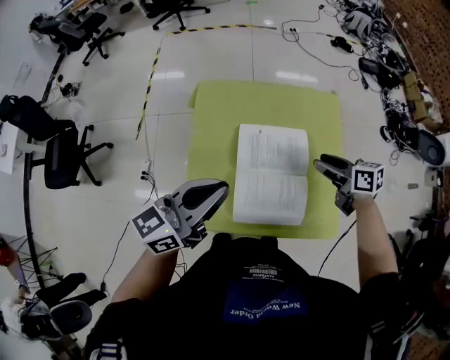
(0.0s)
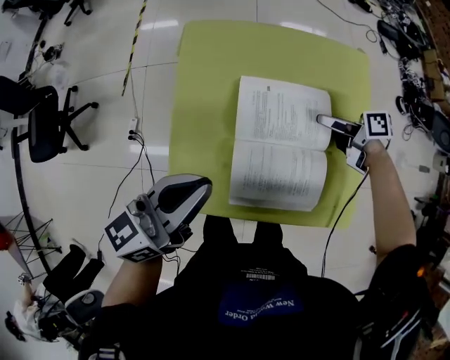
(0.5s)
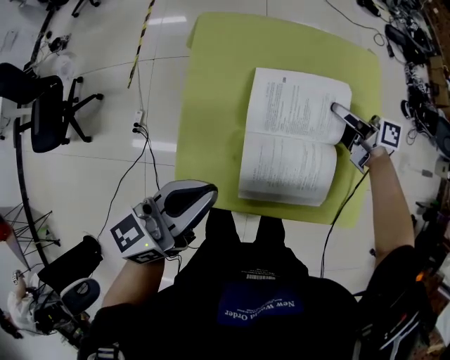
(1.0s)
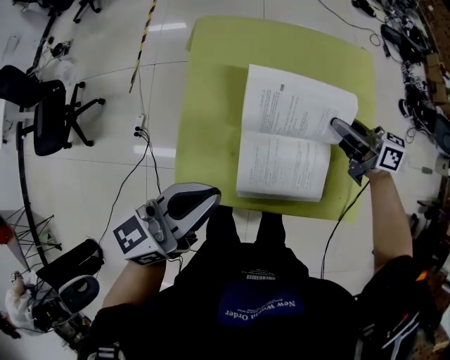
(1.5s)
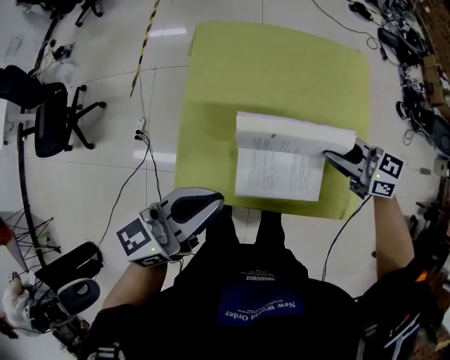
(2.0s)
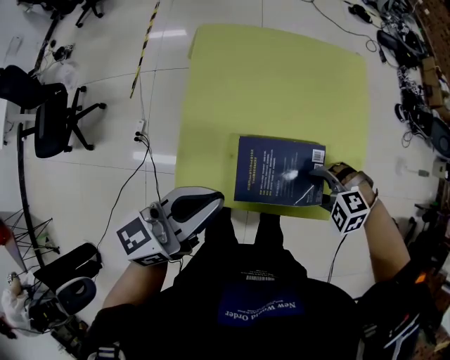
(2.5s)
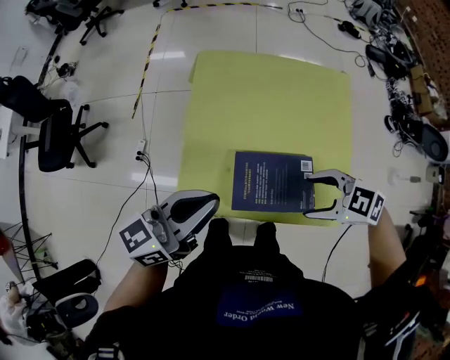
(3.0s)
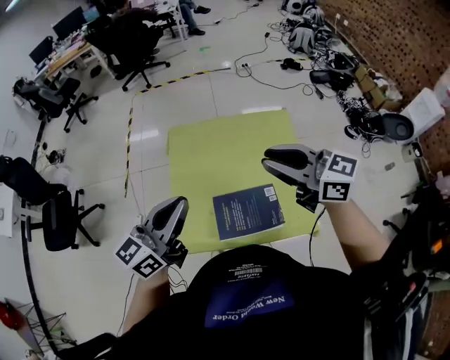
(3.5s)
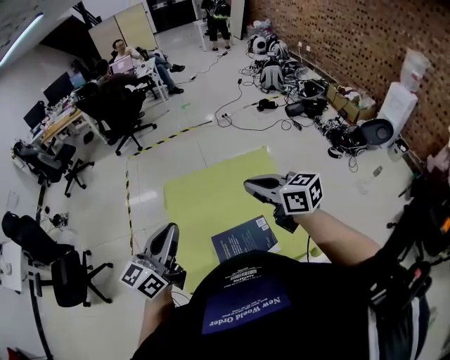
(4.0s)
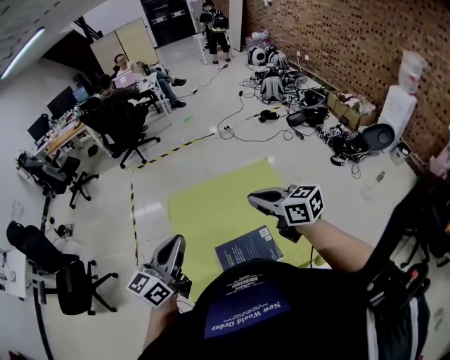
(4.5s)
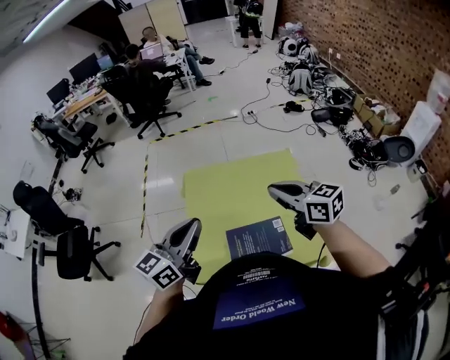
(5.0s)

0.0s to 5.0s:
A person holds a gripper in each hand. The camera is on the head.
0.0s to 2.5s: The left gripper shifts about 5 cm downward. The right gripper moves up and down over about 15 cm, changing direction 2 times, twists about 80 degrees counterclockwise, seen from behind, and closes and opens again.
2.5s to 5.0s: The left gripper heads upward, covering some 15 cm. Meanwhile the right gripper shifts approximately 35 cm upward, tilts its fingers about 60 degrees upward, and closes its fingers.

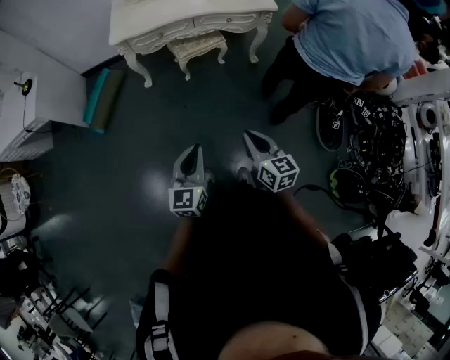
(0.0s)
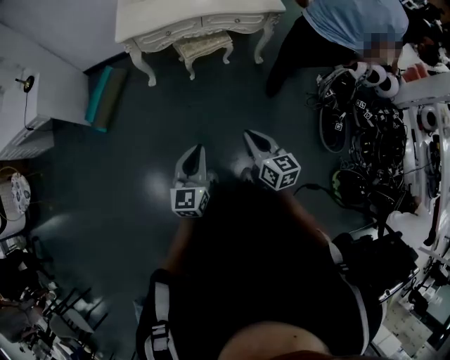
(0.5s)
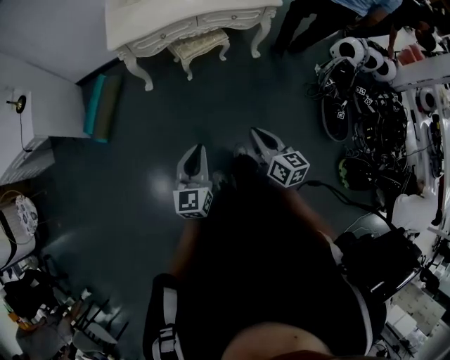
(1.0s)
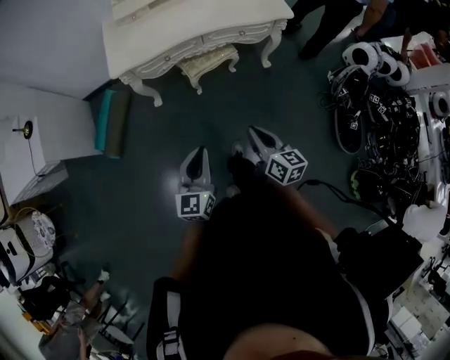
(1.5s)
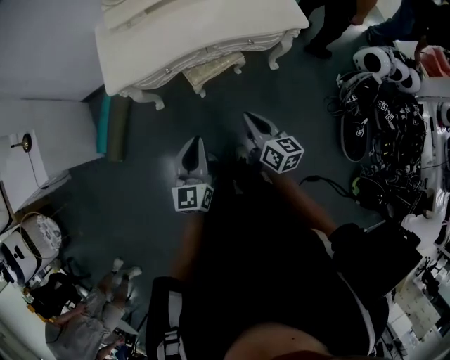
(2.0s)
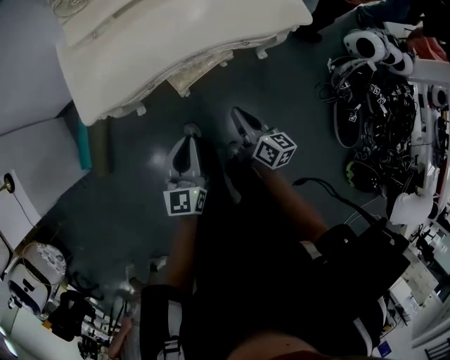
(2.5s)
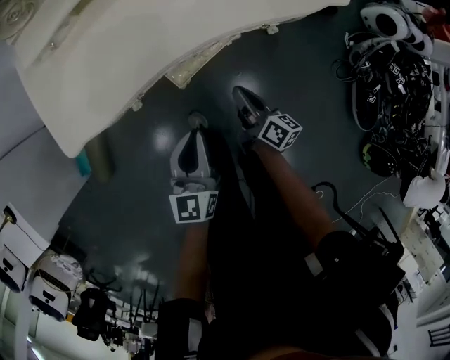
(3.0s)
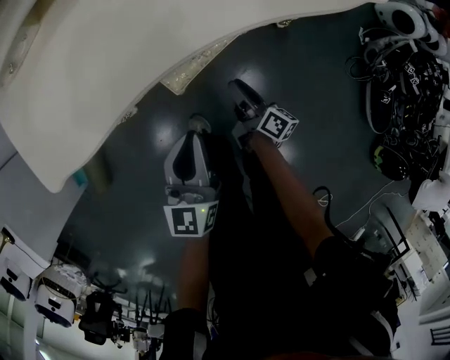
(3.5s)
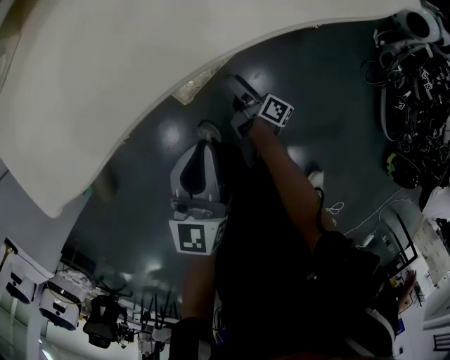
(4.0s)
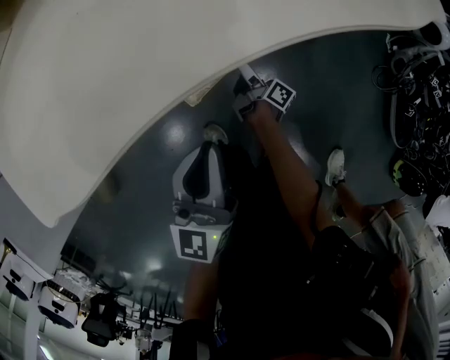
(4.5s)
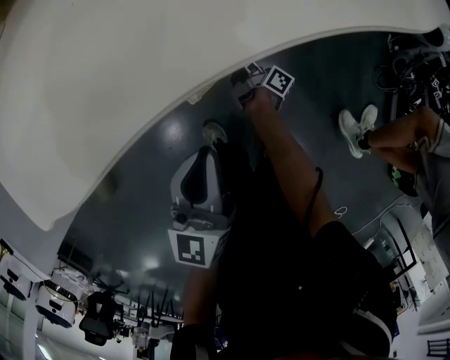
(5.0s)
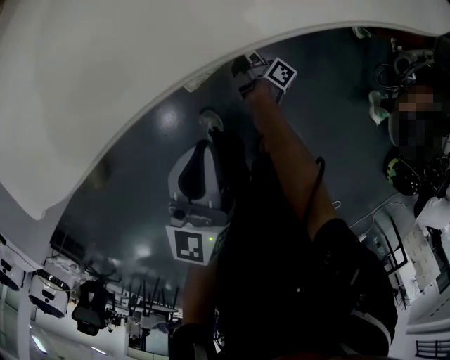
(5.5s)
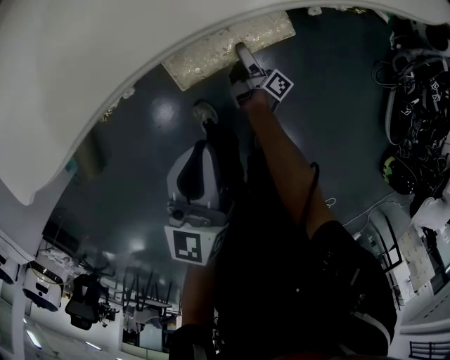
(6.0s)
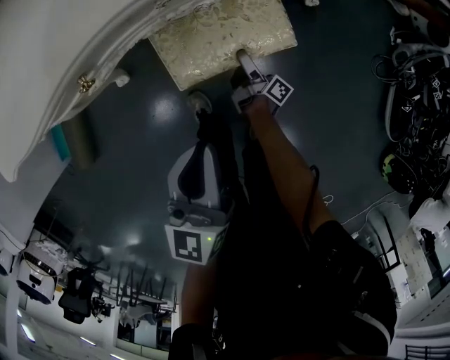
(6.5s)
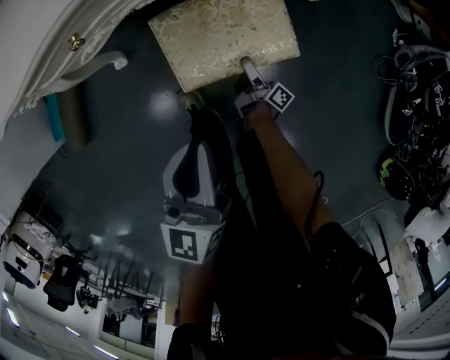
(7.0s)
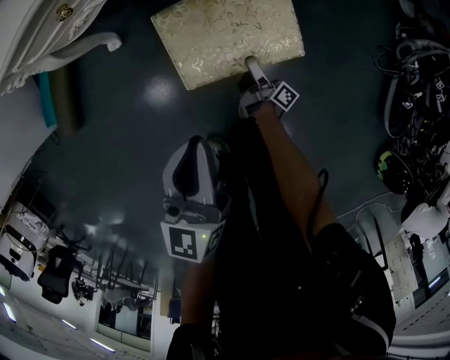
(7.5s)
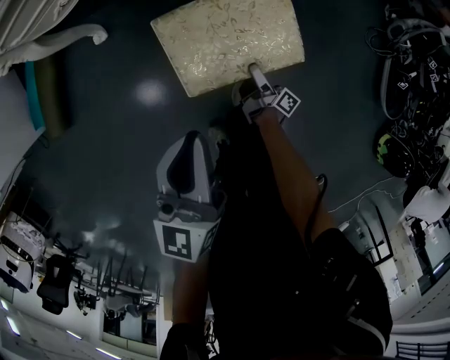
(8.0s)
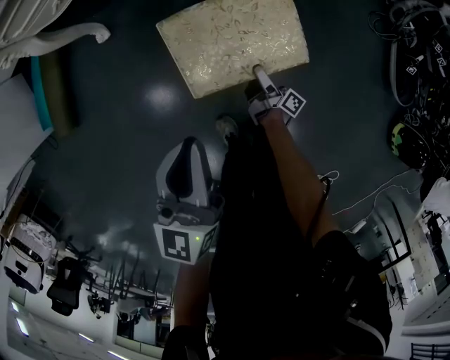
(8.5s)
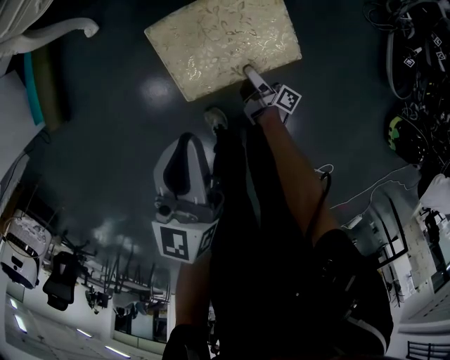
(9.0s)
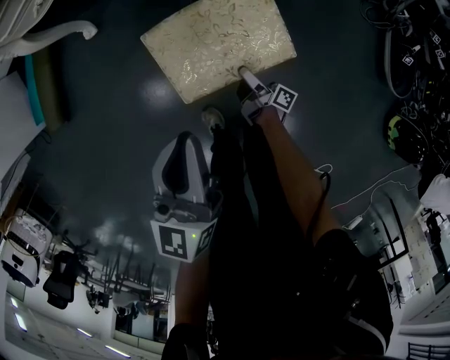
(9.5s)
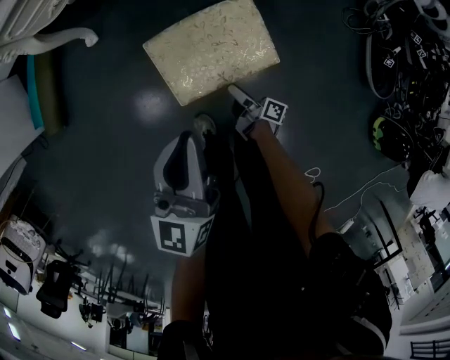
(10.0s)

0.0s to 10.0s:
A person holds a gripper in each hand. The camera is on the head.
0.0s to 2.0s: Both grippers move forward, about 40 cm.
2.0s to 4.0s: The grippers both shift downward and forward by about 50 cm. The right gripper rotates around the line of its fingers by approximately 40 degrees, clockwise from behind, and opens its fingers.
4.0s to 6.0s: The right gripper travels downward by roughly 10 cm.
6.0s to 8.0s: The two grippers go roughly 30 cm backward.
8.0s to 10.0s: The left gripper moves backward, to the right and upward, roughly 15 cm. The right gripper travels backward by some 15 cm.

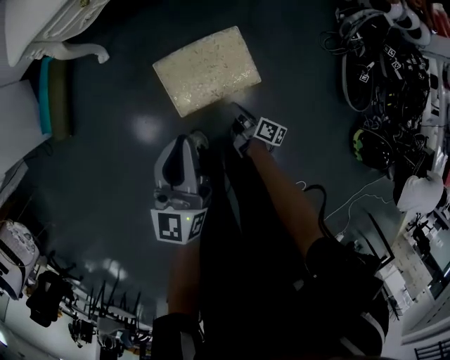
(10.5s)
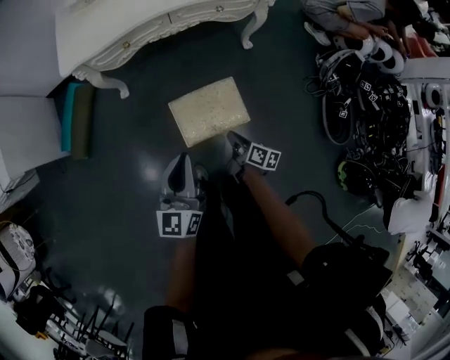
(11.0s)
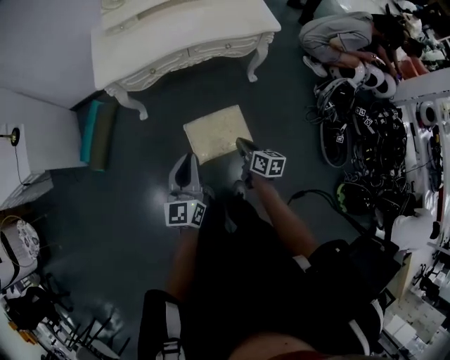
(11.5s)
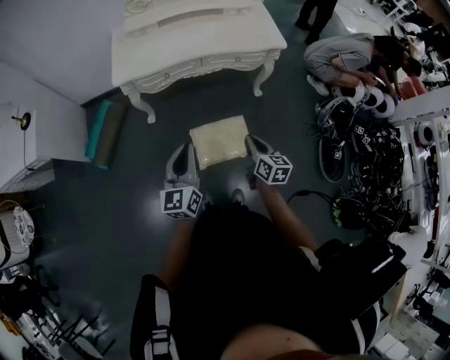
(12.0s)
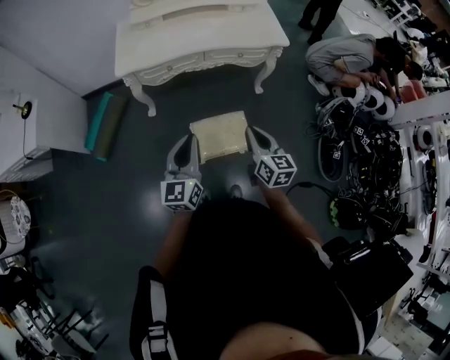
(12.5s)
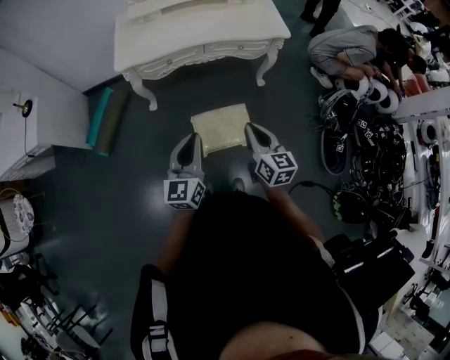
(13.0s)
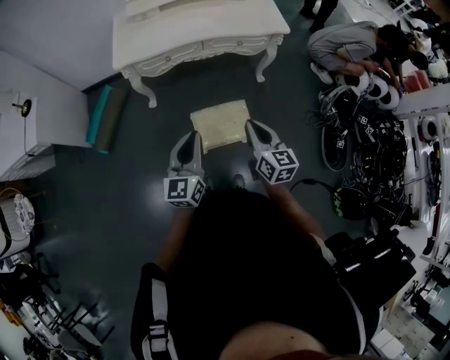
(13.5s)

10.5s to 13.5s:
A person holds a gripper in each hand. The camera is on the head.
10.5s to 12.0s: The left gripper goes roughly 20 cm upward. The right gripper shifts roughly 40 cm upward, and twists about 50 degrees counterclockwise, seen from behind.
12.0s to 13.5s: The right gripper goes approximately 10 cm upward.

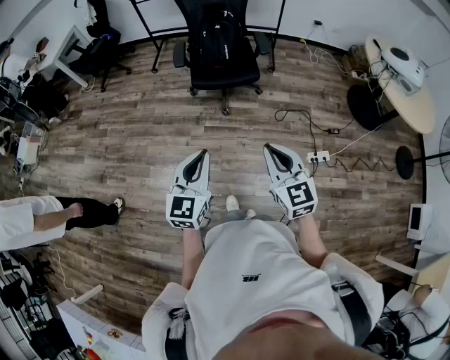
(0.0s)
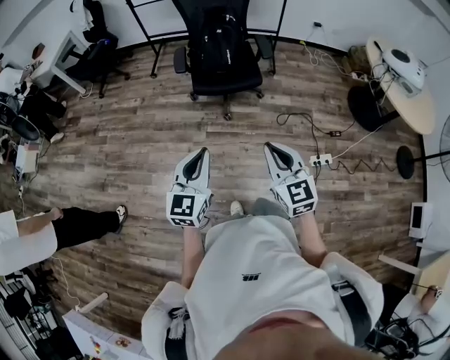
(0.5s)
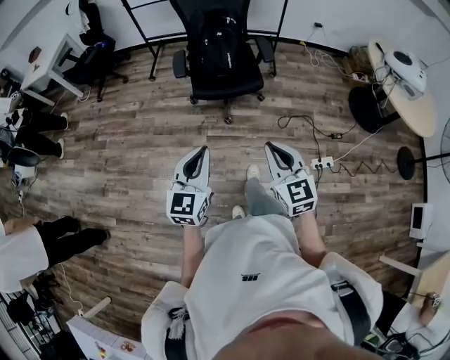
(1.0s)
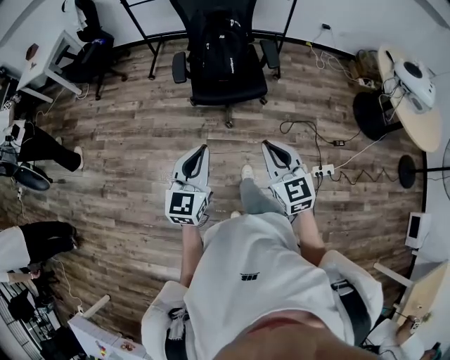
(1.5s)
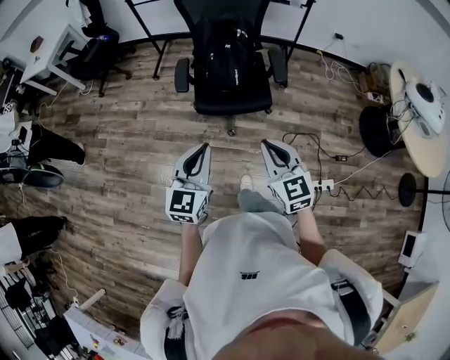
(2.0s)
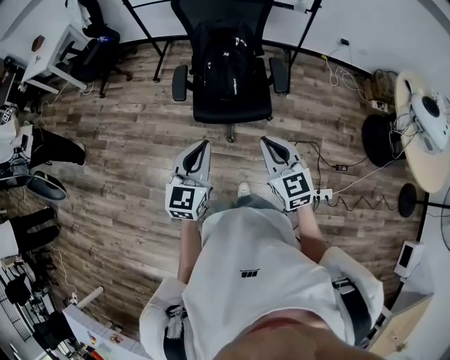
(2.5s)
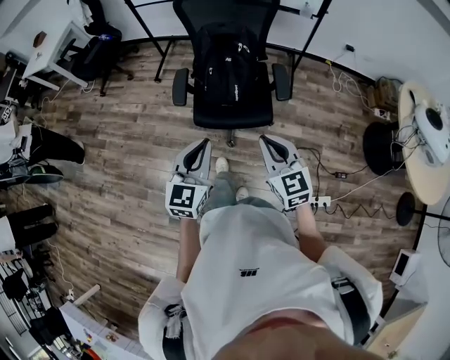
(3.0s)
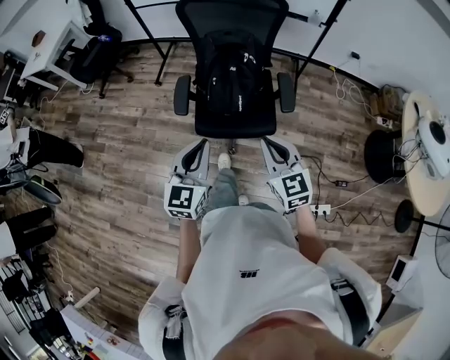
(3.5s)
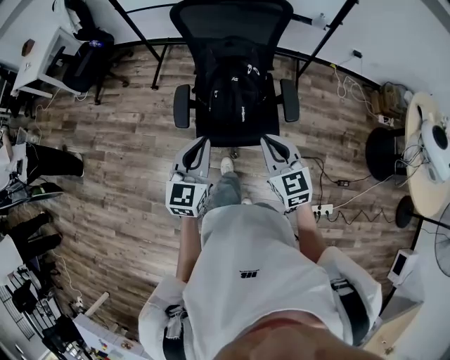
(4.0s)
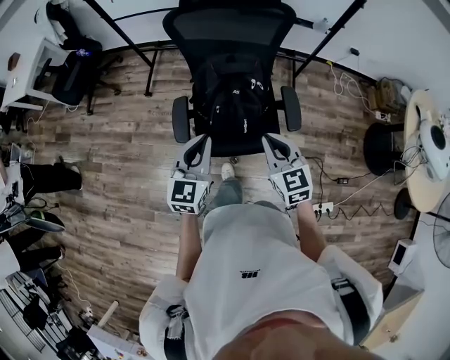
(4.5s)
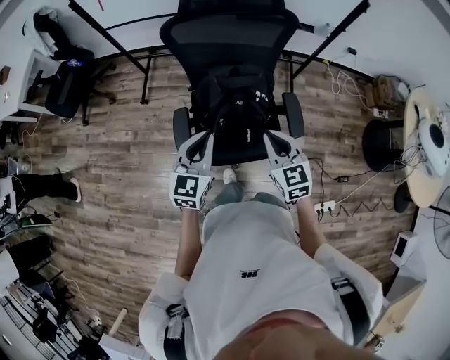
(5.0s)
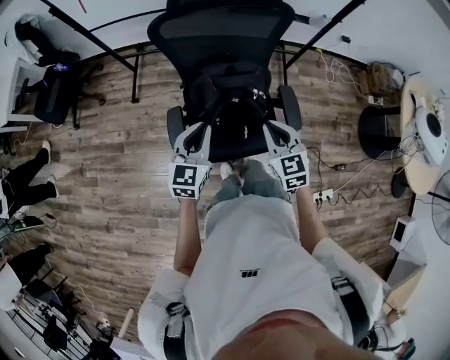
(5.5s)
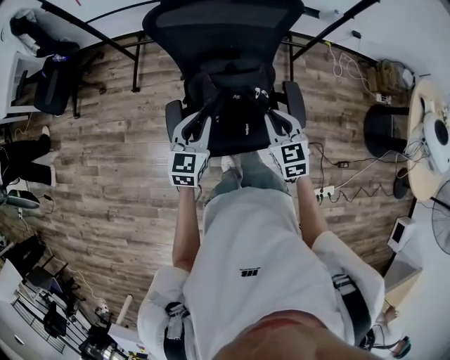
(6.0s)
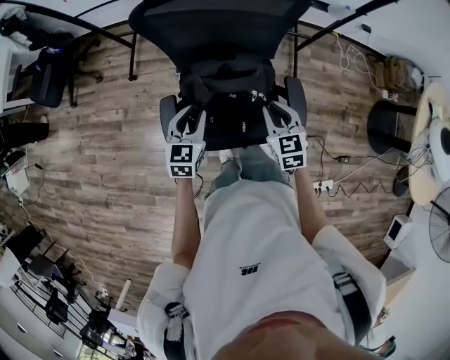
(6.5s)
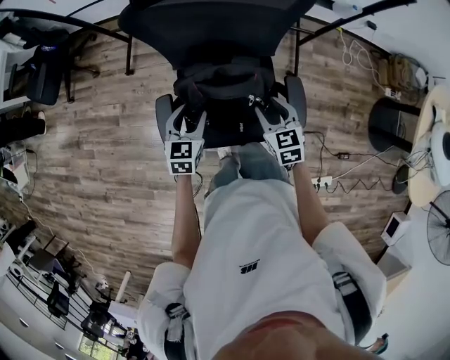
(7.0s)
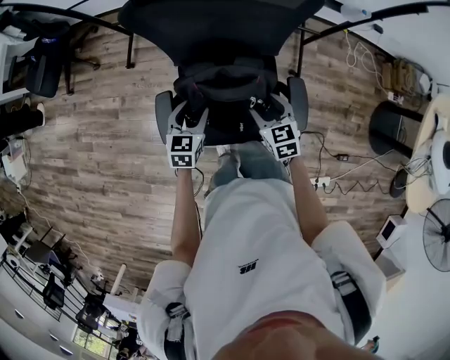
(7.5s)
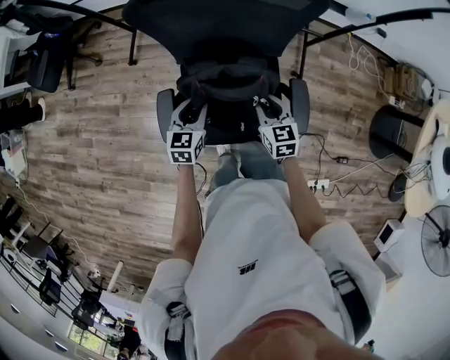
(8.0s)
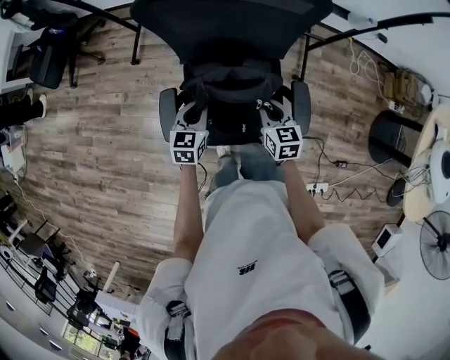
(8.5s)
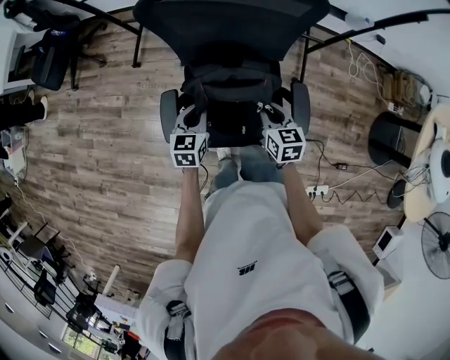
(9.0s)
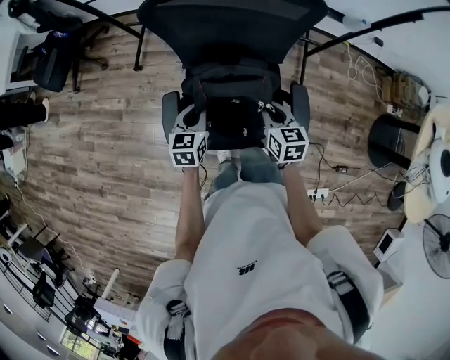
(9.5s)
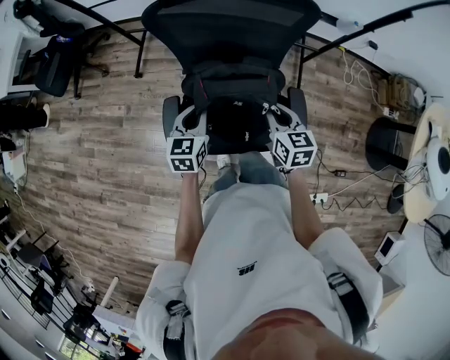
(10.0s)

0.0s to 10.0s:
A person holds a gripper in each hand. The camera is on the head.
0.0s to 2.0s: The two grippers go about 30 cm forward.
2.0s to 4.0s: The two grippers go about 30 cm forward.
4.0s to 6.0s: The two grippers go approximately 25 cm forward and downward.
6.0s to 8.0s: Both grippers travel together downward and forward, roughly 15 cm. The left gripper opens, then closes once more, while the right gripper opens, then closes once more.
8.0s to 10.0s: The two grippers go about 10 cm upward. The left gripper closes.
